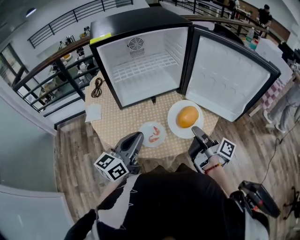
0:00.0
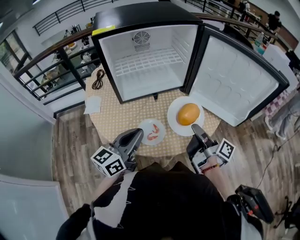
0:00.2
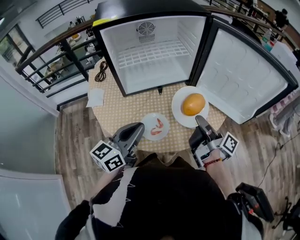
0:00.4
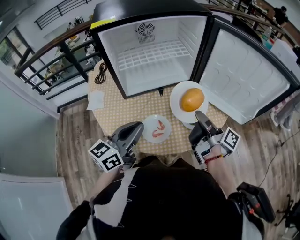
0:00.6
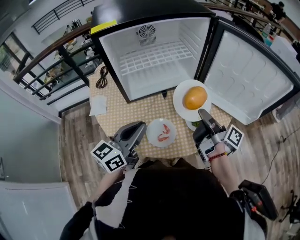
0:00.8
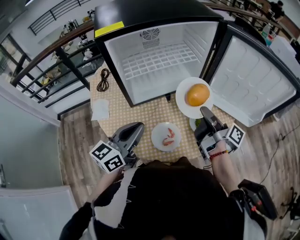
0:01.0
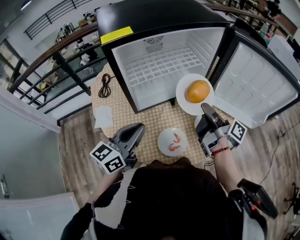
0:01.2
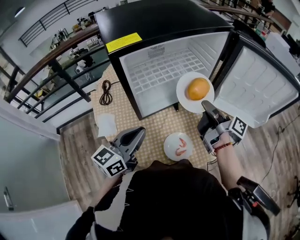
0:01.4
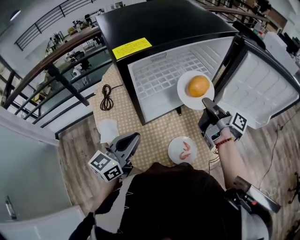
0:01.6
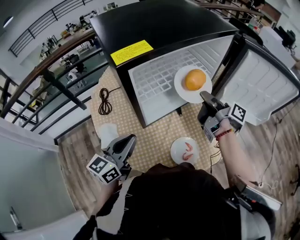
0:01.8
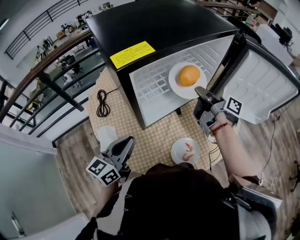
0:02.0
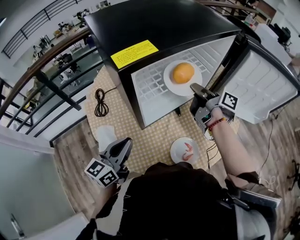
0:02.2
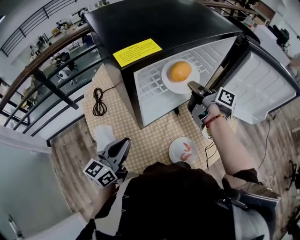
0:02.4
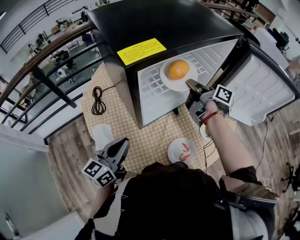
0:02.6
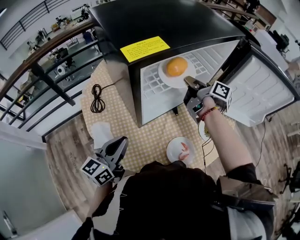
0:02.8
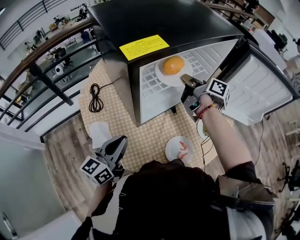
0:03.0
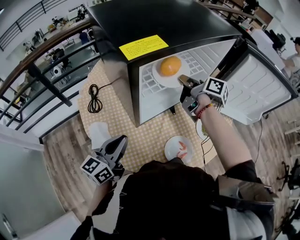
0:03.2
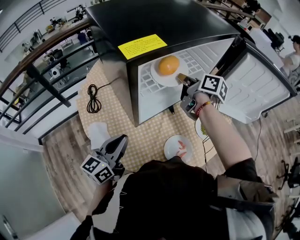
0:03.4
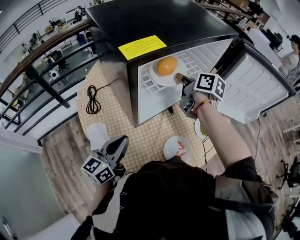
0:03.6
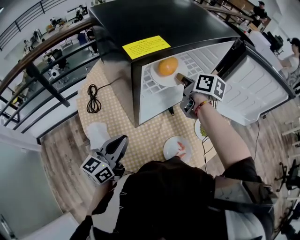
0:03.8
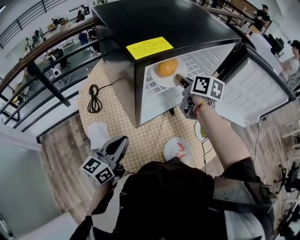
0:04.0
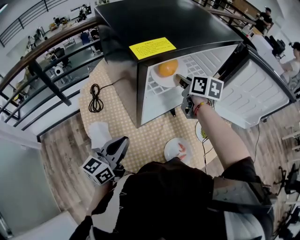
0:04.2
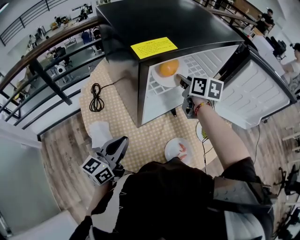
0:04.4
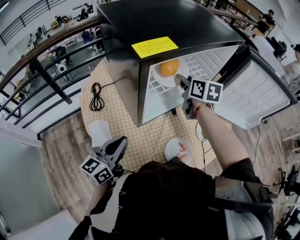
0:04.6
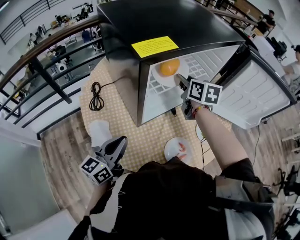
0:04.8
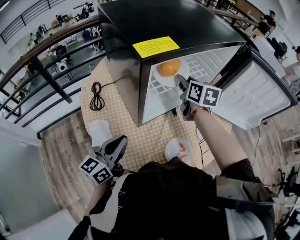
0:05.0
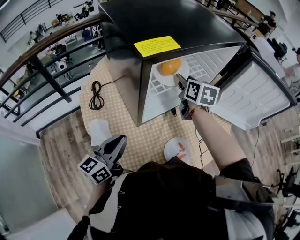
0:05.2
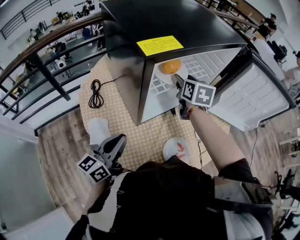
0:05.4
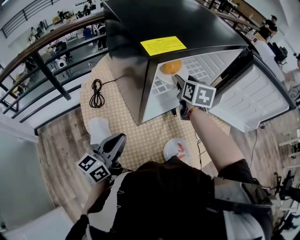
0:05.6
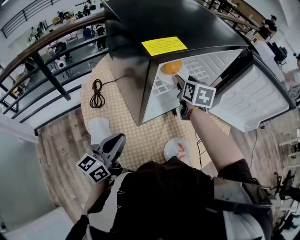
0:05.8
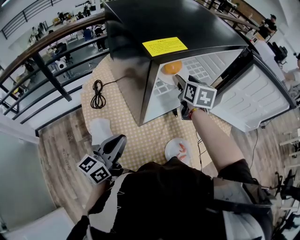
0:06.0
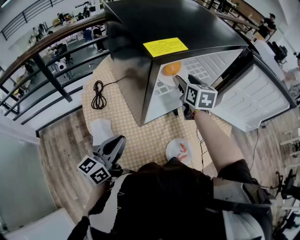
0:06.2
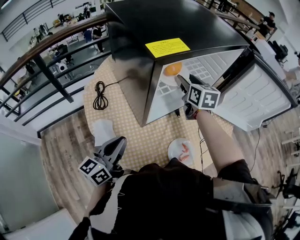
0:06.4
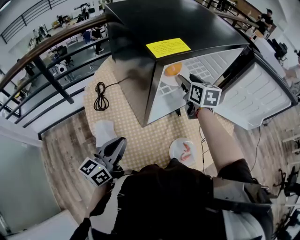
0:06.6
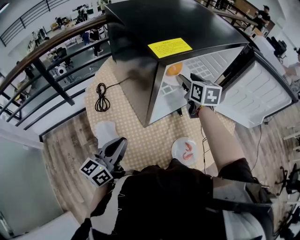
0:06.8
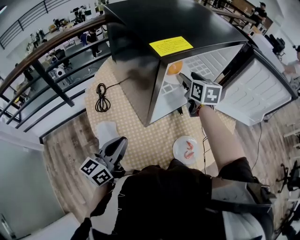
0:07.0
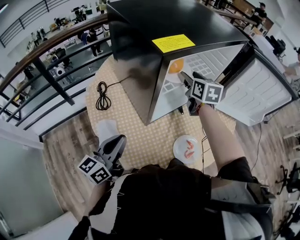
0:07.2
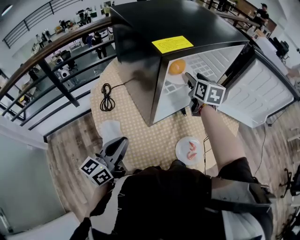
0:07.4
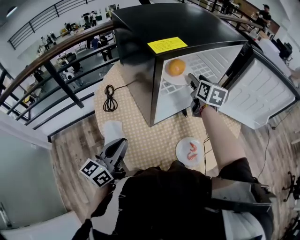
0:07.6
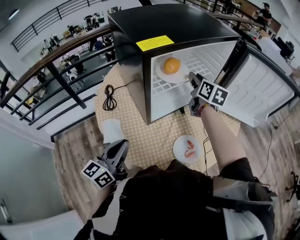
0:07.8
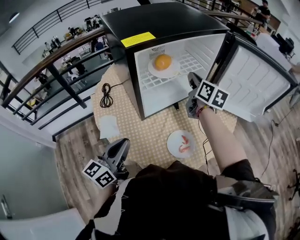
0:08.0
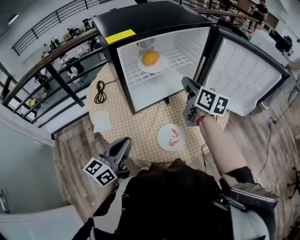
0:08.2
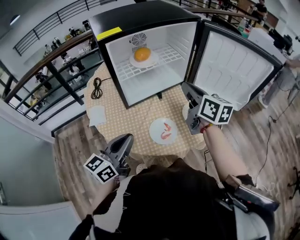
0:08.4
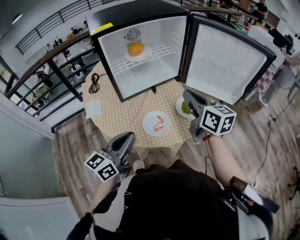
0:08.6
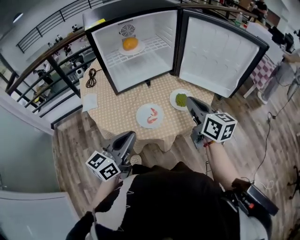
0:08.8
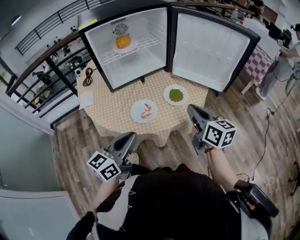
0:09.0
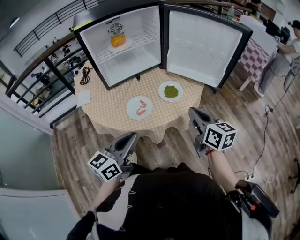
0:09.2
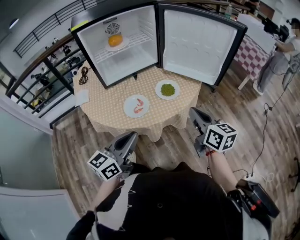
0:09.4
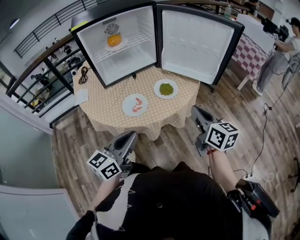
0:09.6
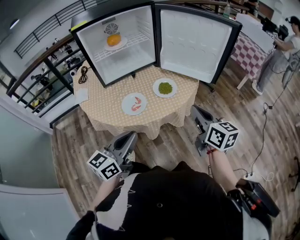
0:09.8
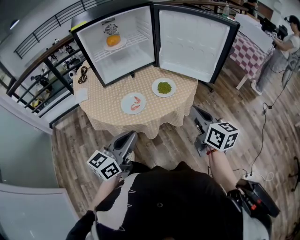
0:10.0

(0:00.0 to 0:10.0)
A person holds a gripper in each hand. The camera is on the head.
0:00.0 - 0:01.4: The right gripper goes about 20 cm forward and to the left, while the left gripper moves to the left and forward, about 15 cm.
0:01.4 - 0:02.8: The right gripper heads forward and to the left, covering about 15 cm, while the left gripper is displaced to the left and downward by roughly 10 cm.
0:02.8 - 0:04.2: The right gripper twists approximately 50 degrees counterclockwise, seen from behind.
0:04.2 - 0:05.8: The right gripper opens its fingers.
0:05.8 - 0:07.2: The grippers stay close to where they were, moving slightly.
0:07.2 - 0:08.6: The left gripper goes some 30 cm to the right and backward; the right gripper moves backward and to the right, approximately 35 cm, changes its angle by roughly 30 degrees, and closes its fingers.
0:08.6 - 0:10.0: The two grippers go some 20 cm to the right and backward.

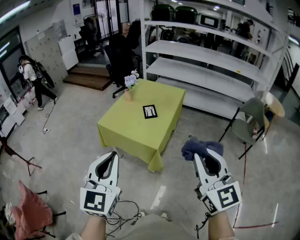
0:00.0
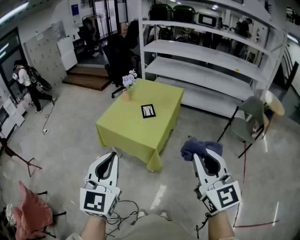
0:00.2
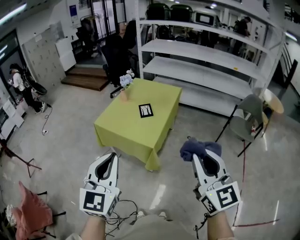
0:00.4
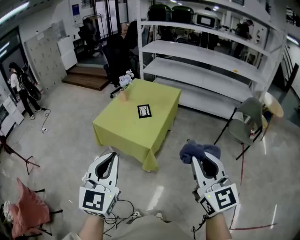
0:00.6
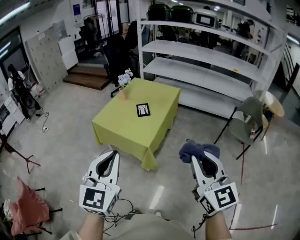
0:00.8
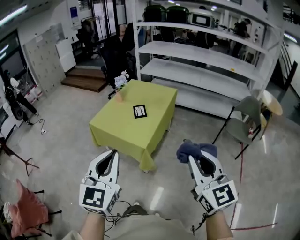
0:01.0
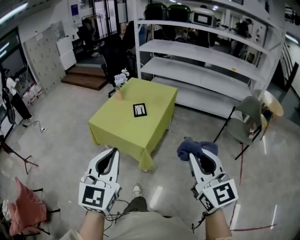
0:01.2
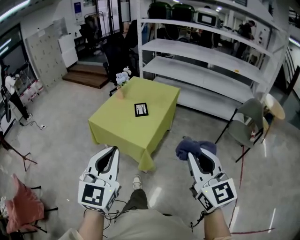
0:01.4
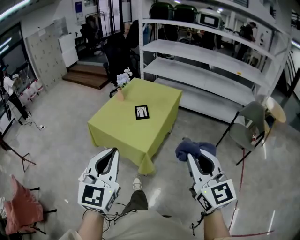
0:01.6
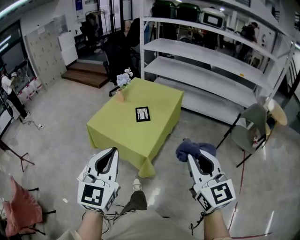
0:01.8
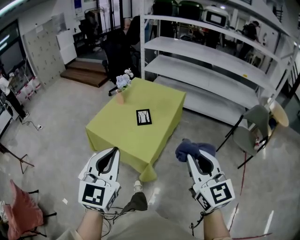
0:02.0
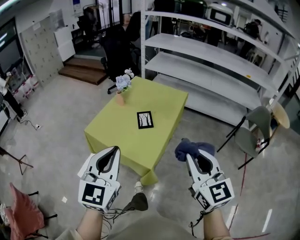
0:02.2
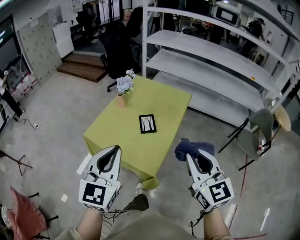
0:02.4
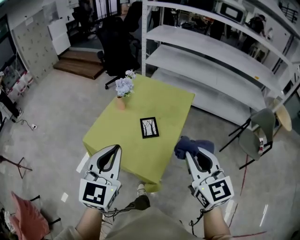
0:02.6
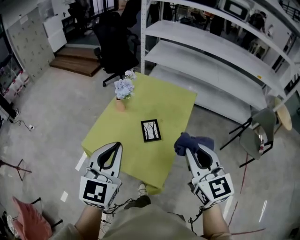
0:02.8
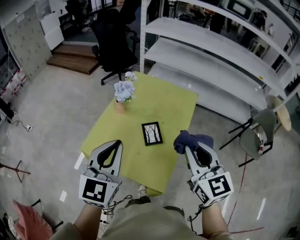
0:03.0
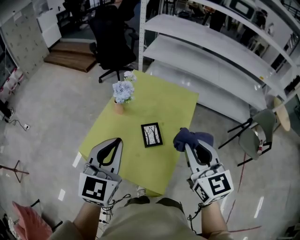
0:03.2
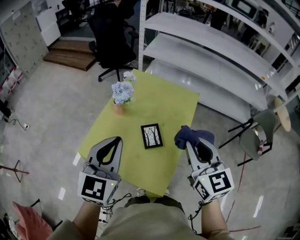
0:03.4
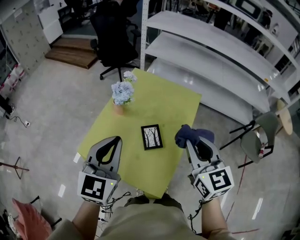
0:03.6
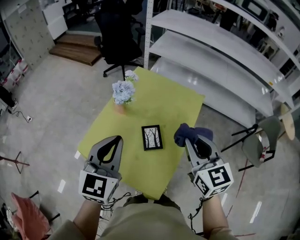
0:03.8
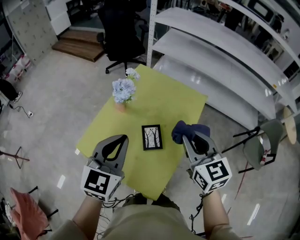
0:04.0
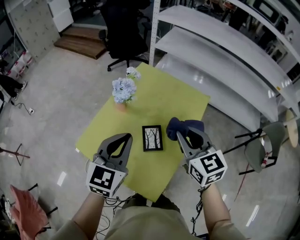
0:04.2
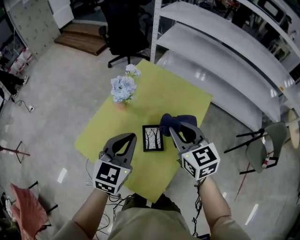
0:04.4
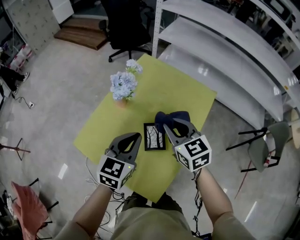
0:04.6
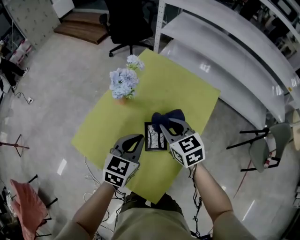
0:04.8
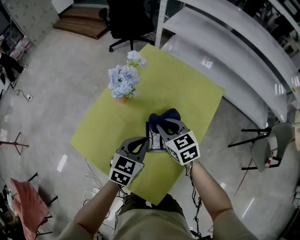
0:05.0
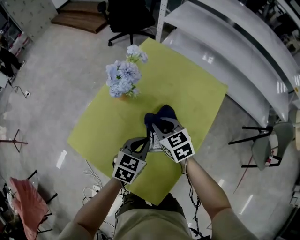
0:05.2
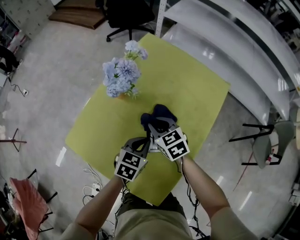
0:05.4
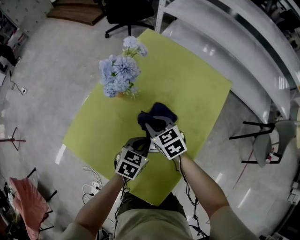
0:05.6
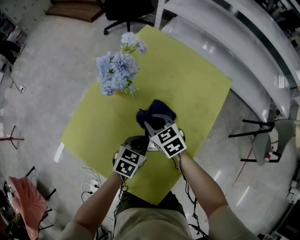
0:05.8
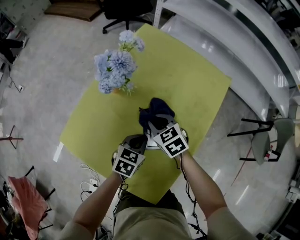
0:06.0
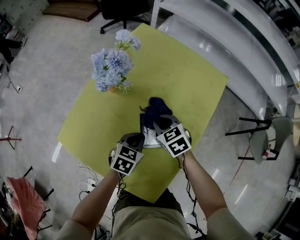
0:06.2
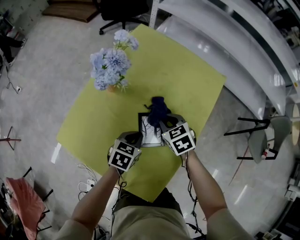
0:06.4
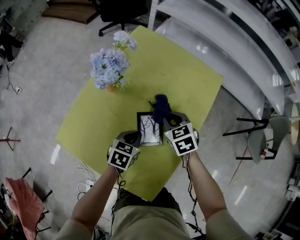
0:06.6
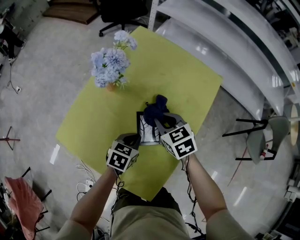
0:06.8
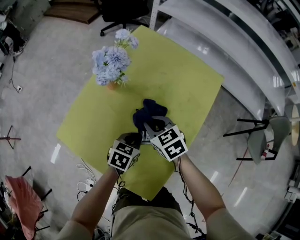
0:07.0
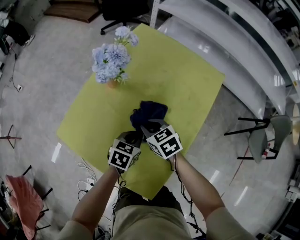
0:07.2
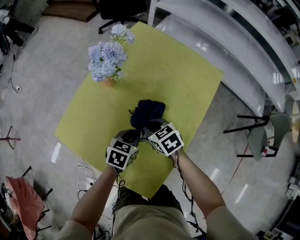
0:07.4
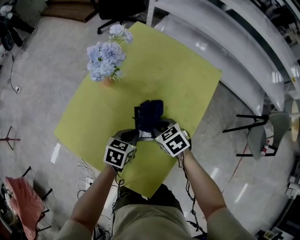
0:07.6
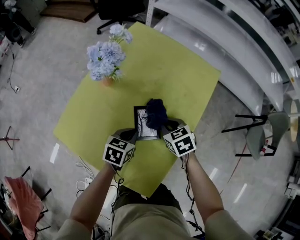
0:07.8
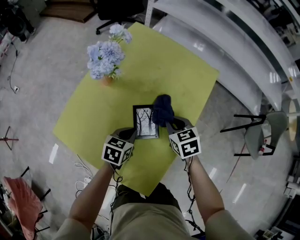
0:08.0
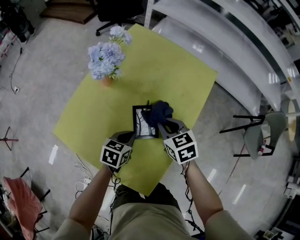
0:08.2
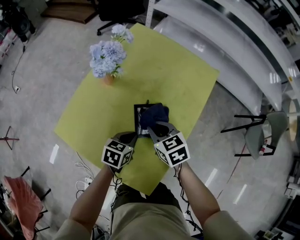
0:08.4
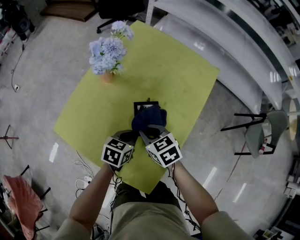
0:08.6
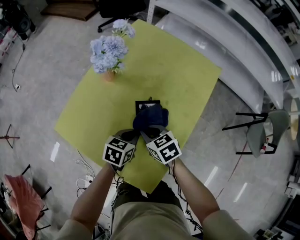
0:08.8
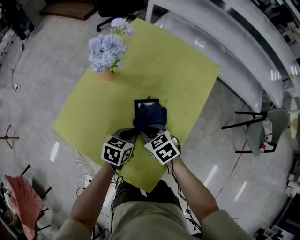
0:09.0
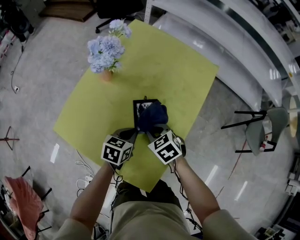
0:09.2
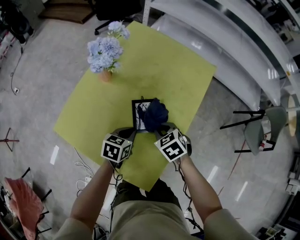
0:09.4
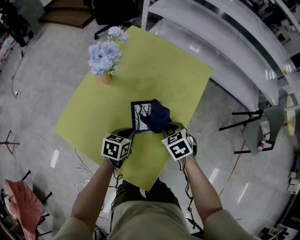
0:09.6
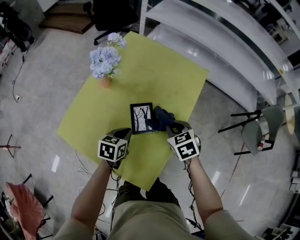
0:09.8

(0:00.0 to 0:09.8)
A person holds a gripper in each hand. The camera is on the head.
0:00.0 - 0:01.4: The two grippers go some 10 cm to the right.
0:01.4 - 0:02.8: The two grippers travel together, forward, roughly 40 cm.
0:02.8 - 0:04.2: The left gripper is displaced forward and downward by some 20 cm, while the right gripper goes approximately 20 cm forward.
0:04.2 - 0:05.6: The right gripper shifts some 30 cm downward and to the left, and changes its angle by approximately 30 degrees. The left gripper moves downward, about 30 cm, and rotates approximately 40 degrees.
0:05.6 - 0:07.0: The right gripper moves about 10 cm to the right and comes back.
0:07.0 - 0:08.4: The right gripper reaches approximately 10 cm to the right, then returns.
0:08.4 - 0:09.8: The right gripper heads to the right, covering about 10 cm.

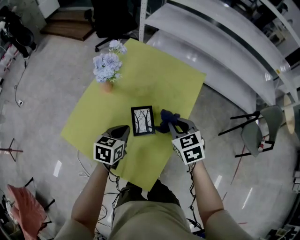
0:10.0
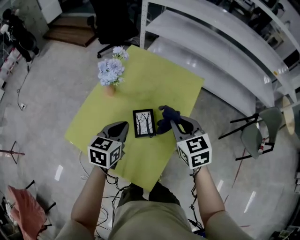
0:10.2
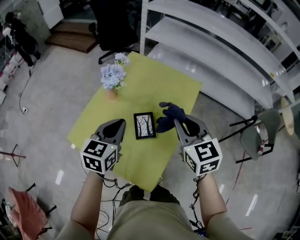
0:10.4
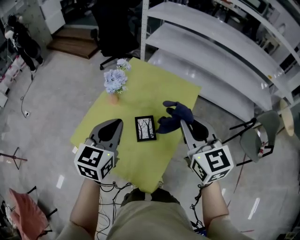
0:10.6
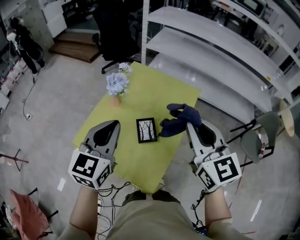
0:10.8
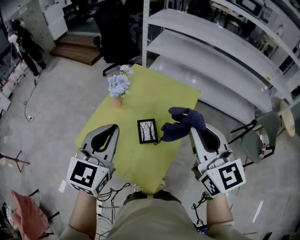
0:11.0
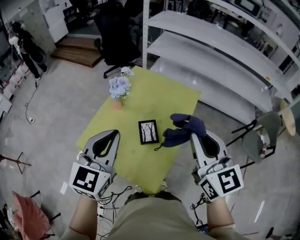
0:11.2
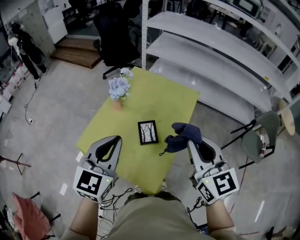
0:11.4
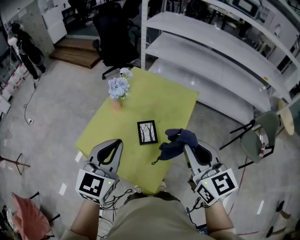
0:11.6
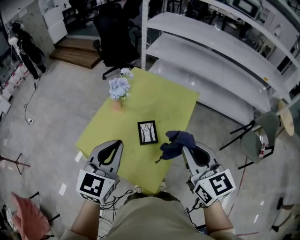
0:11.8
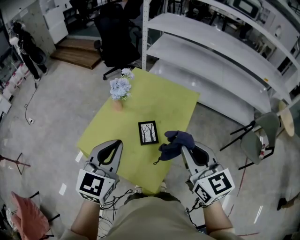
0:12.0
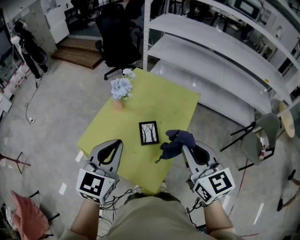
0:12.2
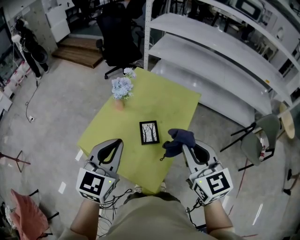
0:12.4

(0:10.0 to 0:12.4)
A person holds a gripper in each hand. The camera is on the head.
0:10.0 - 0:11.2: The right gripper is displaced upward and backward by some 30 cm, and points its fingers approximately 40 degrees further upward. The left gripper is displaced upward by approximately 30 cm, and rotates about 40 degrees.
0:11.2 - 0:12.4: The right gripper changes place by some 5 cm.

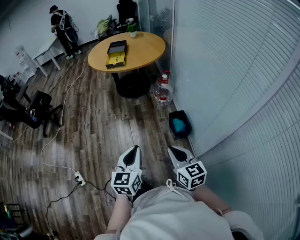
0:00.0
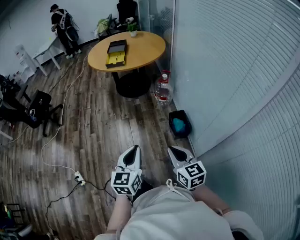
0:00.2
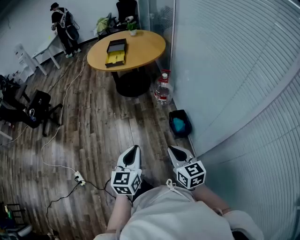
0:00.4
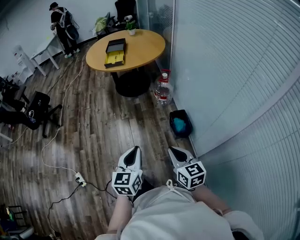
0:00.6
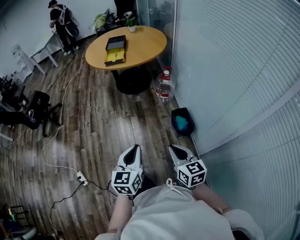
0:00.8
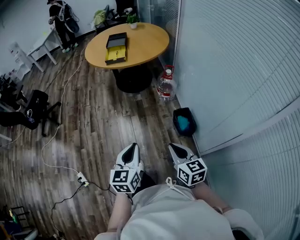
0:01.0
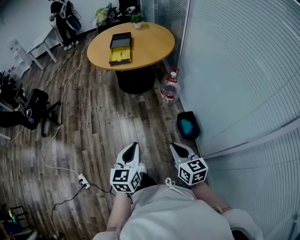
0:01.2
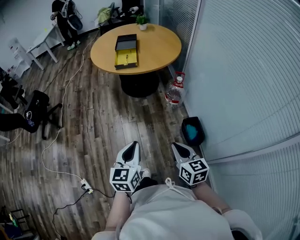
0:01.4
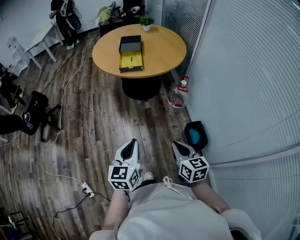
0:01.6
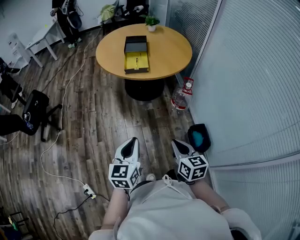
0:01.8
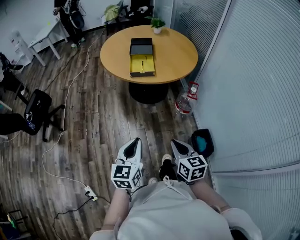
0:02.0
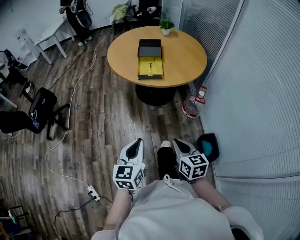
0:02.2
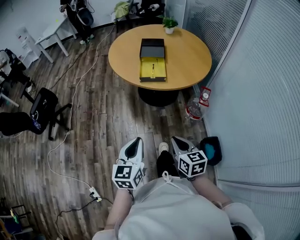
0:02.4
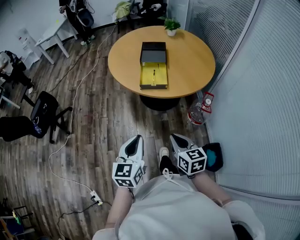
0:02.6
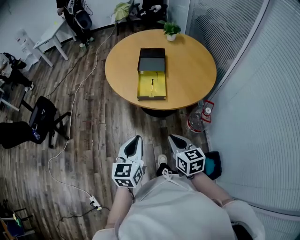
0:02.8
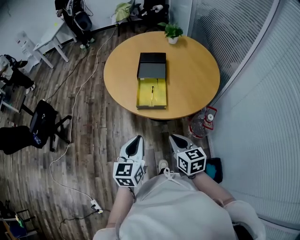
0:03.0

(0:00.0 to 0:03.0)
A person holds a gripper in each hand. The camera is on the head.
0:00.0 - 0:01.6: The two grippers go roughly 35 cm forward and to the left.
0:01.6 - 0:03.0: The two grippers travel together, forward, roughly 40 cm.
